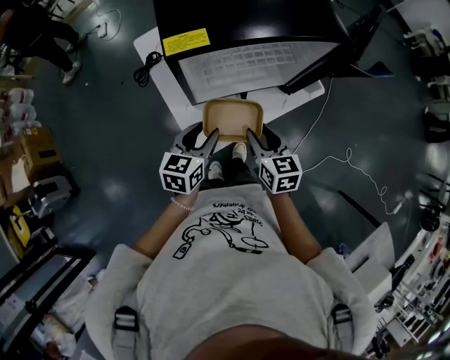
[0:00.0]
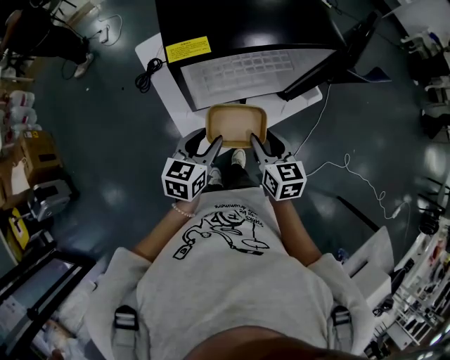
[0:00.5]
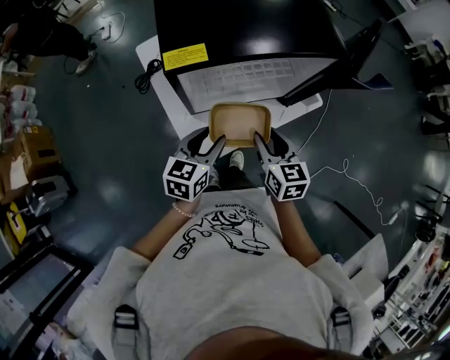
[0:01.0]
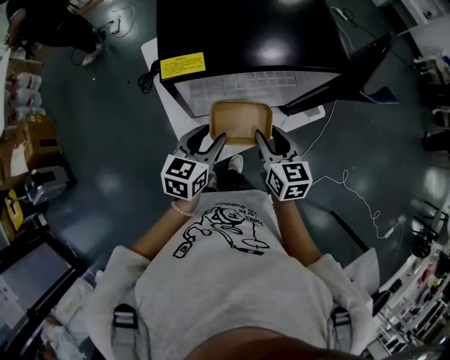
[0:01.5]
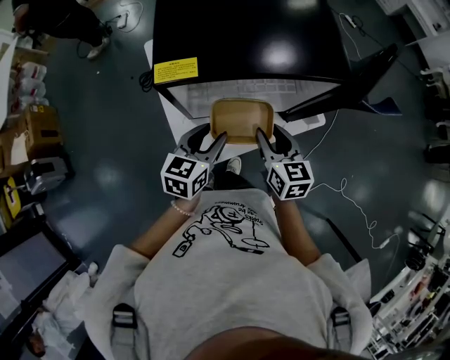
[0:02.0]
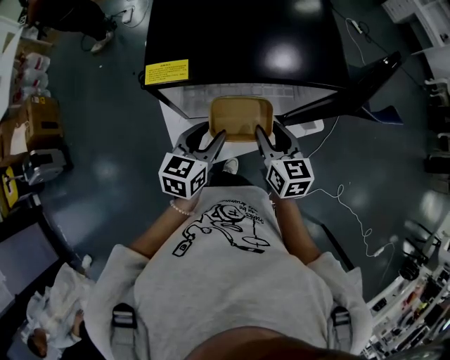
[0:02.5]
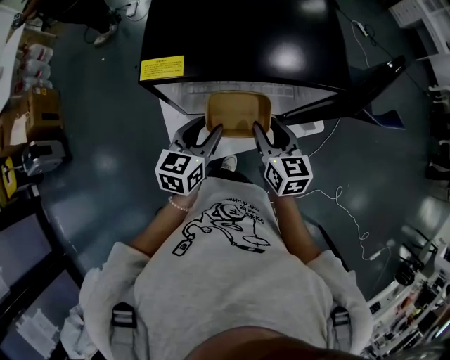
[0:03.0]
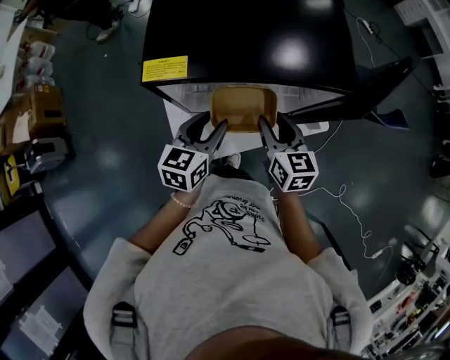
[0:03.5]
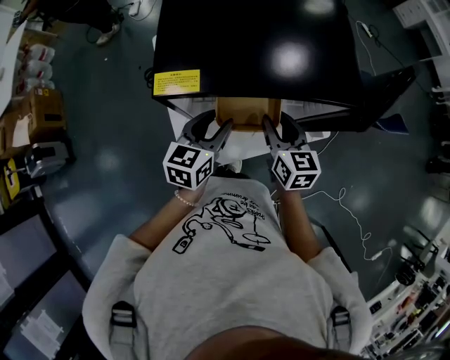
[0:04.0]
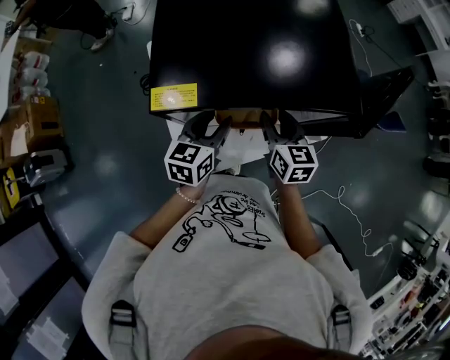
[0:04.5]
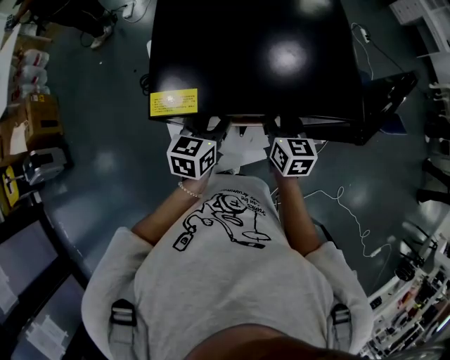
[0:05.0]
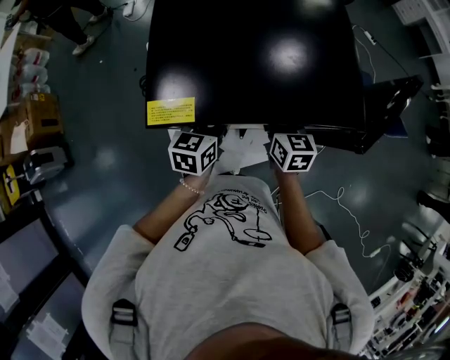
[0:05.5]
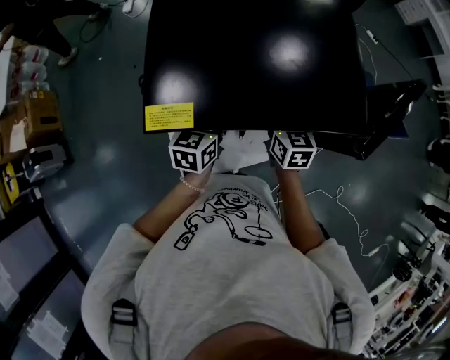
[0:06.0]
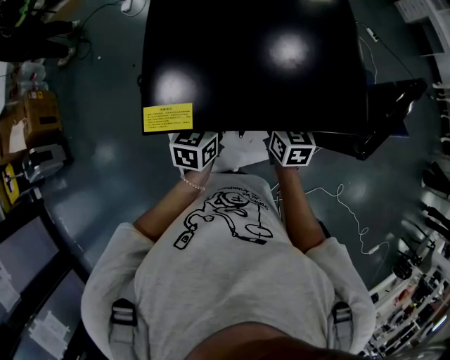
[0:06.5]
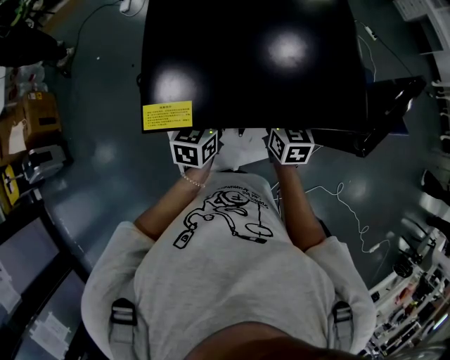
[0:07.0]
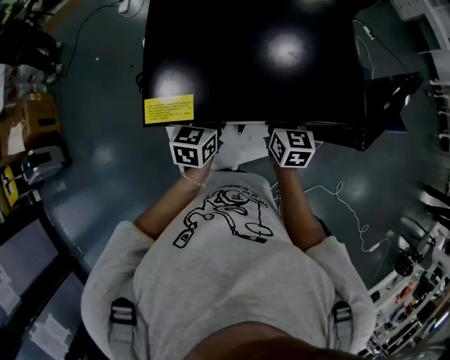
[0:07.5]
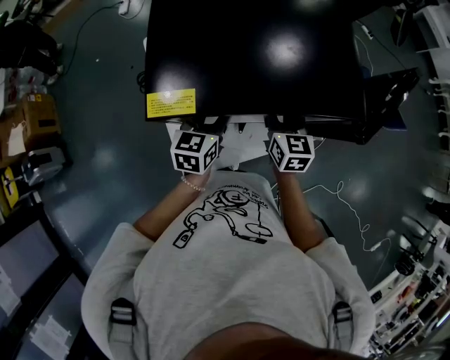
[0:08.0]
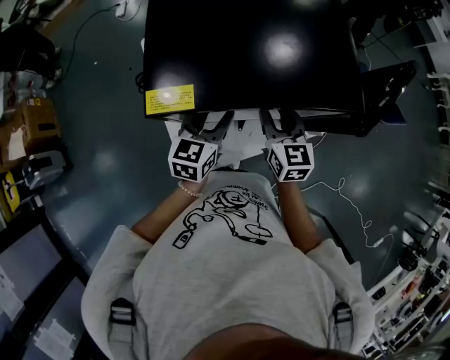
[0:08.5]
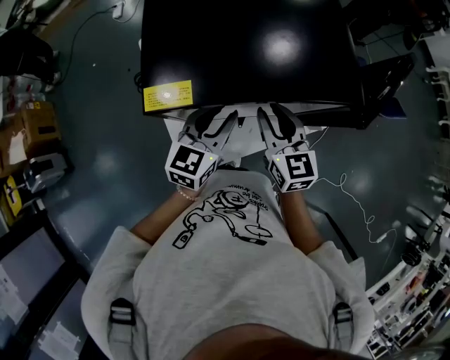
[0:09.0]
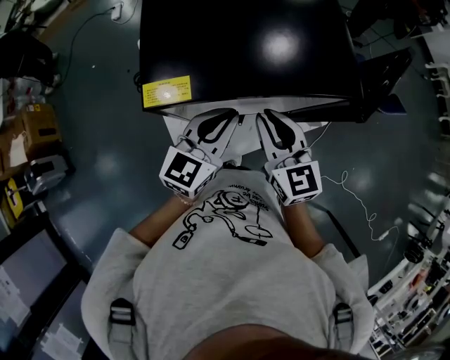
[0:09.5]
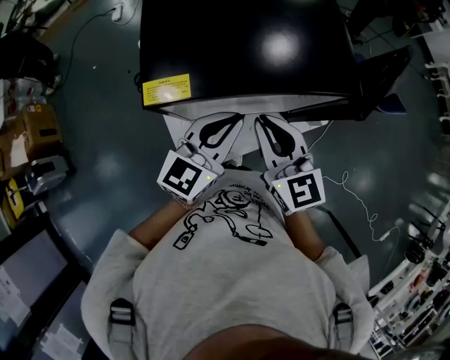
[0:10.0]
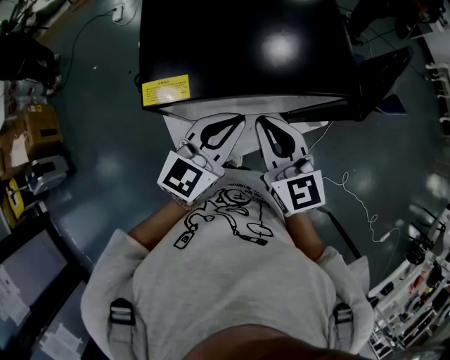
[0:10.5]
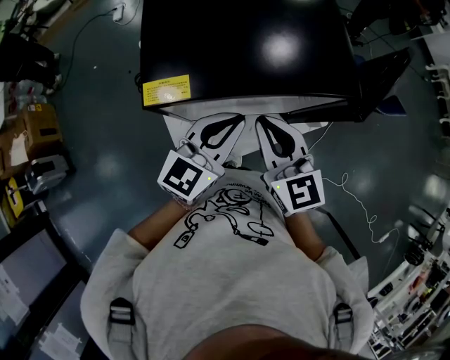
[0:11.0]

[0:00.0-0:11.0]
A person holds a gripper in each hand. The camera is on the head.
0:00.0 to 0:02.0: Both grippers move forward, some 10 cm.
0:02.0 to 0:03.5: There are only small adjustments of the grippers.
0:03.5 to 0:05.5: Both grippers move forward, roughly 10 cm.
0:05.5 to 0:07.5: There are only small adjustments of the grippers.
0:07.5 to 0:09.0: The right gripper is displaced backward and upward by roughly 10 cm. The left gripper heads upward and backward, covering roughly 10 cm.
0:09.0 to 0:11.0: The right gripper heads upward and backward, covering approximately 10 cm, and closes its fingers. The left gripper heads upward, covering about 5 cm, and closes its fingers.

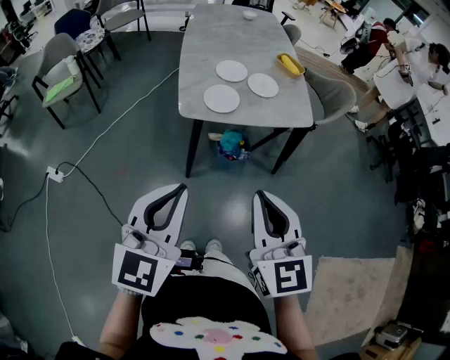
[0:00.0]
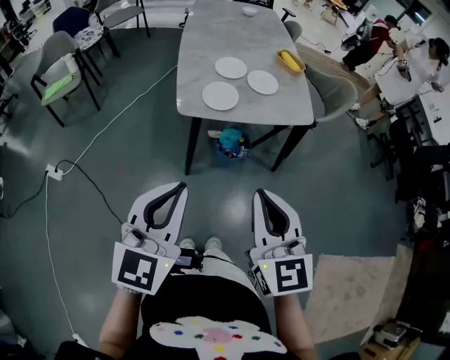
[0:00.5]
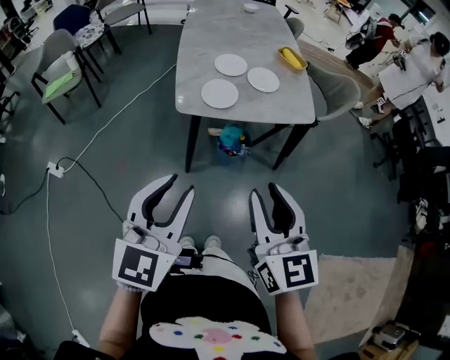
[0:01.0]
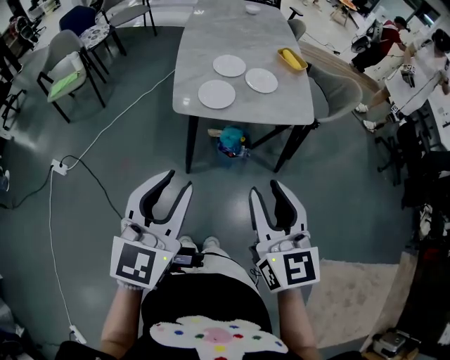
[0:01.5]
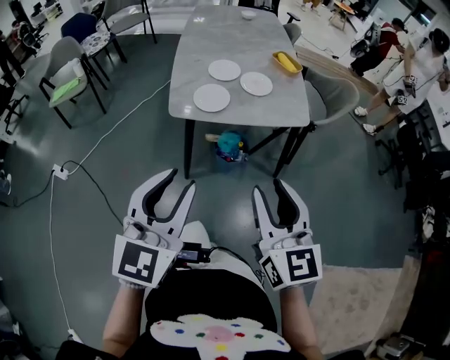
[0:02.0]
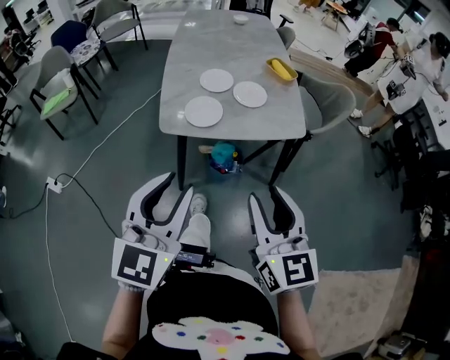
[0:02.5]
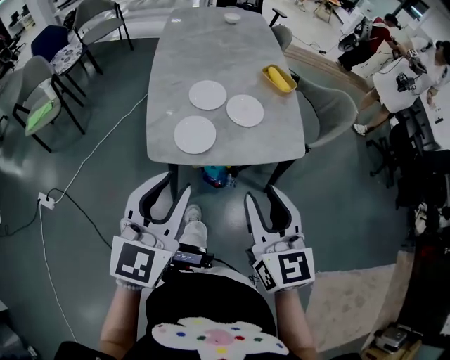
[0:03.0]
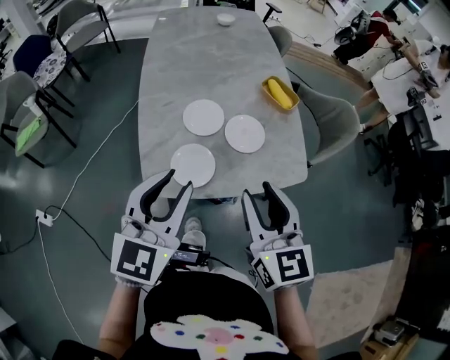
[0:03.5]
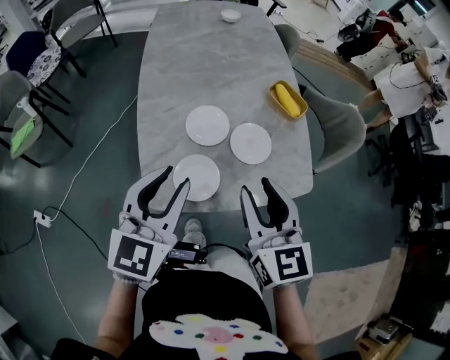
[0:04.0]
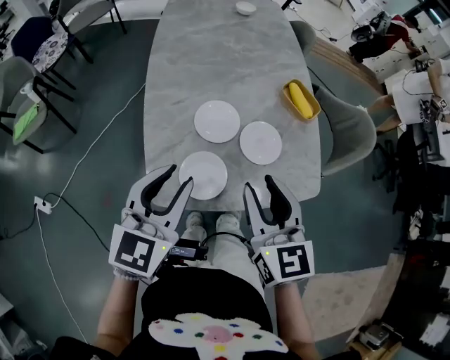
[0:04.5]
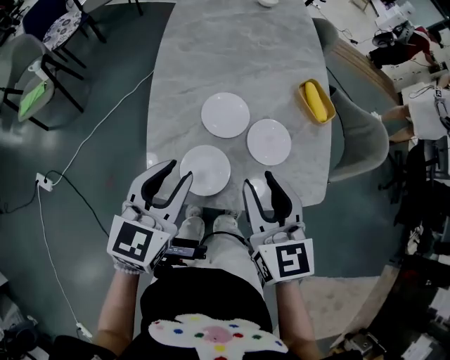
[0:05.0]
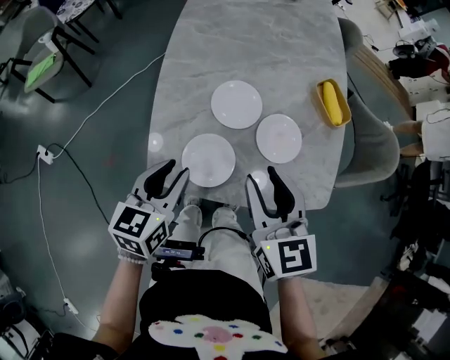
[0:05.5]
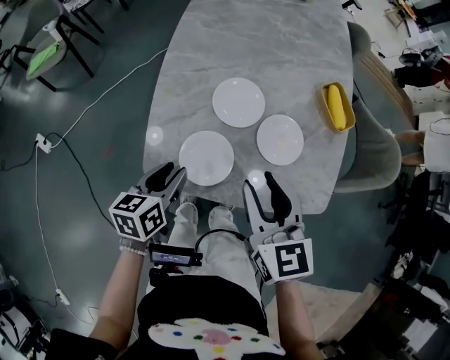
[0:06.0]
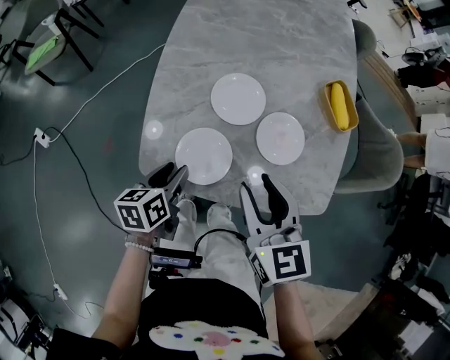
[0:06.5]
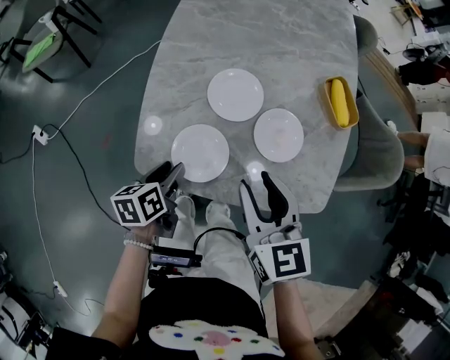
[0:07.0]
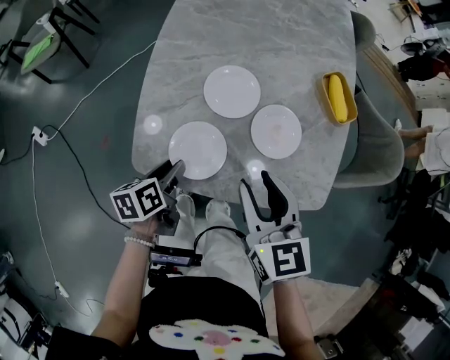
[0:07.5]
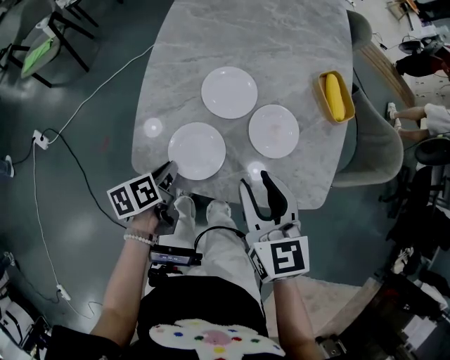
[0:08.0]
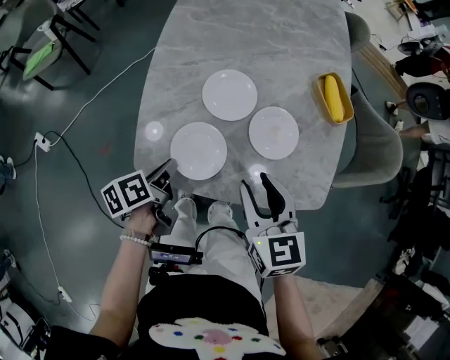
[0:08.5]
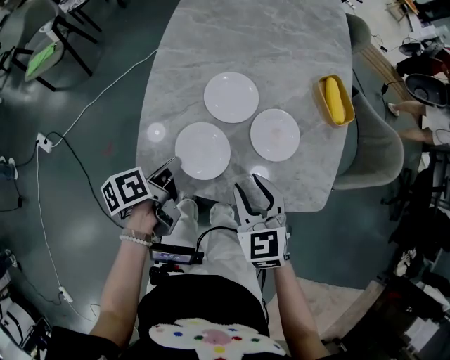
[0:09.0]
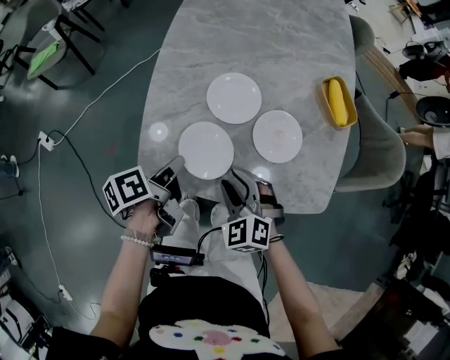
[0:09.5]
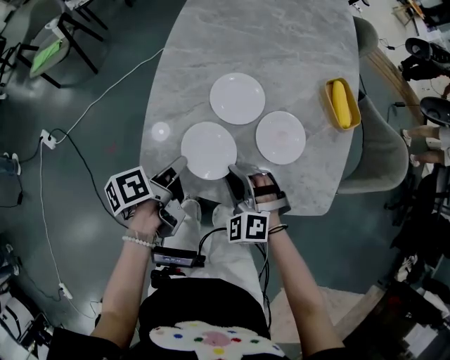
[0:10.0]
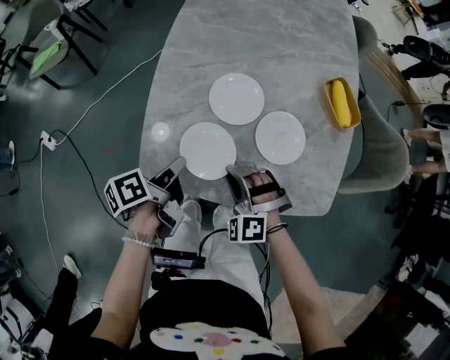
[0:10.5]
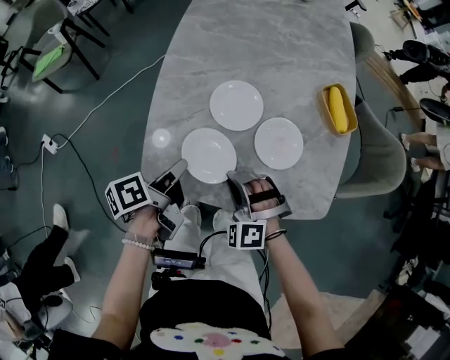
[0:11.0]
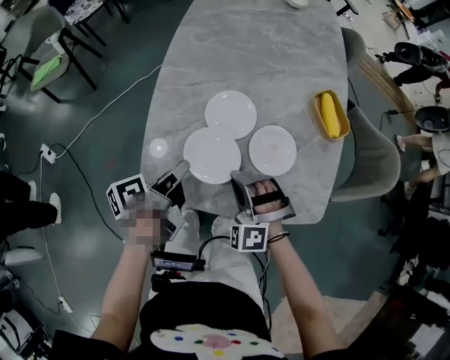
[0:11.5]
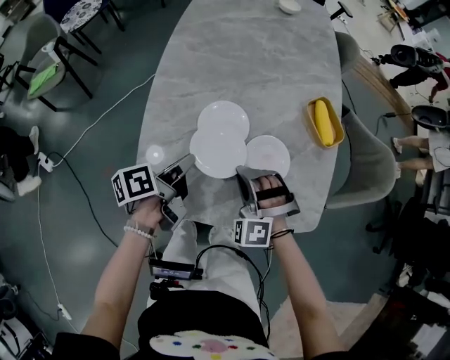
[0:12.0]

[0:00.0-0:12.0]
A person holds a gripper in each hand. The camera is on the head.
0:00.0 to 0:02.0: Both grippers move to the right, roughly 10 cm. The left gripper opens up. Meanwhile the right gripper opens.
0:02.0 to 0:04.0: Both grippers move forward, some 35 cm.
0:04.0 to 0:06.0: The right gripper is displaced downward by roughly 10 cm, and changes its angle by some 20 degrees. Meanwhile the left gripper goes about 20 cm downward, and rotates around the line of its fingers by approximately 40 degrees, counterclockwise from behind.
0:06.0 to 0:08.0: The left gripper travels downward by approximately 5 cm, swivels roughly 30 degrees, and closes up.
0:08.0 to 0:10.0: The right gripper moves downward, about 15 cm, and twists roughly 60 degrees counterclockwise, seen from behind. Meanwhile the left gripper travels upward by approximately 5 cm, and changes its angle by some 20 degrees.
0:10.0 to 0:12.0: The grippers both shift forward by some 10 cm. The right gripper rotates about 20 degrees.

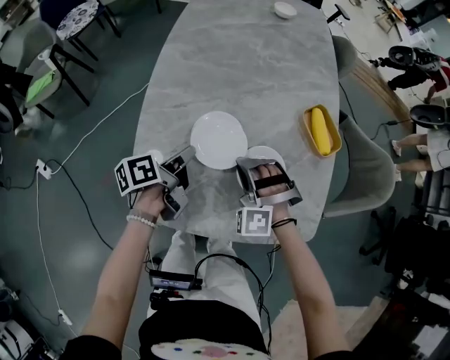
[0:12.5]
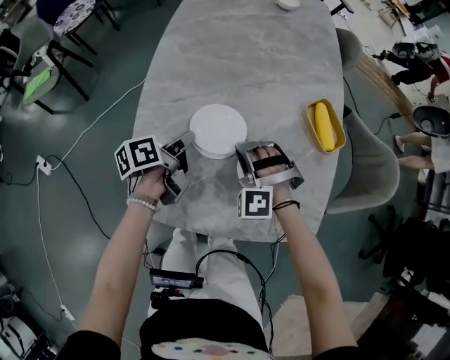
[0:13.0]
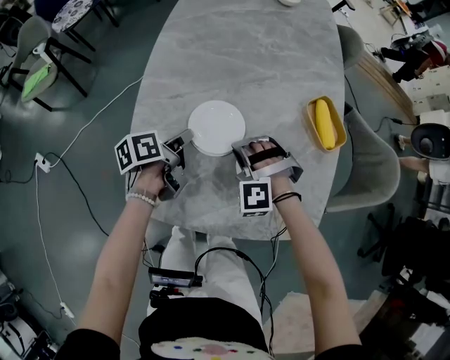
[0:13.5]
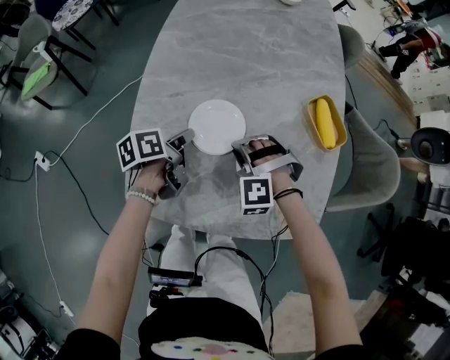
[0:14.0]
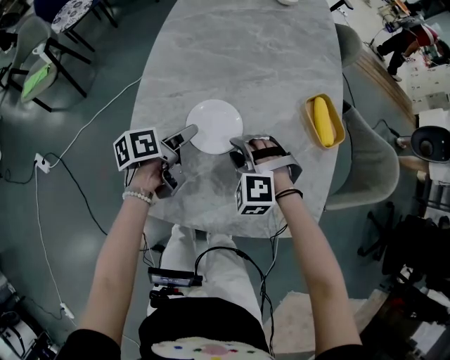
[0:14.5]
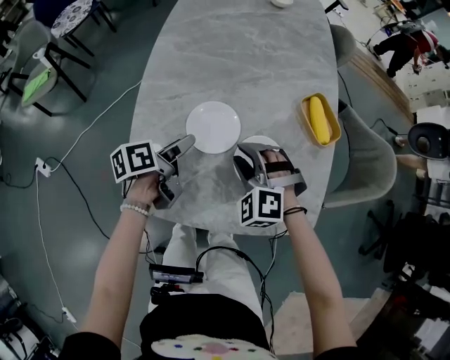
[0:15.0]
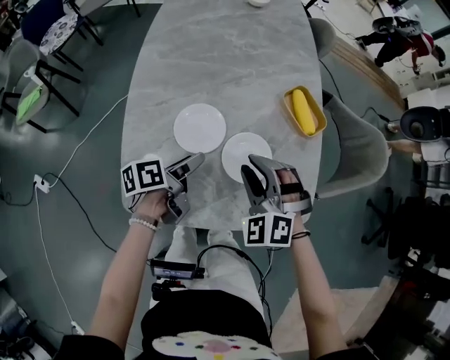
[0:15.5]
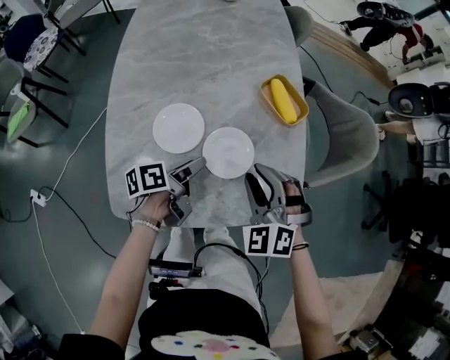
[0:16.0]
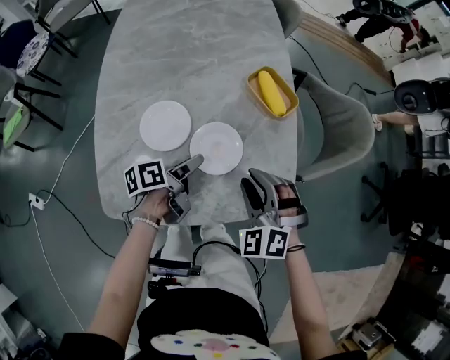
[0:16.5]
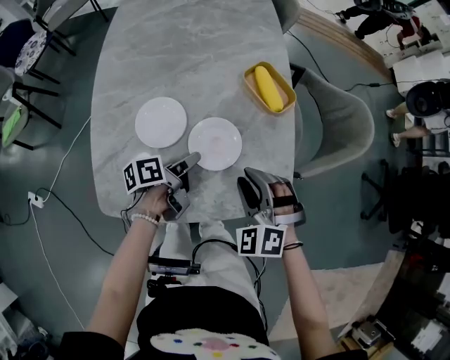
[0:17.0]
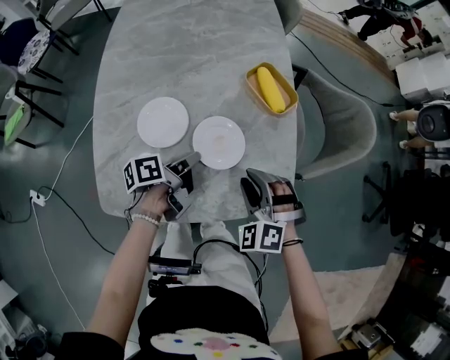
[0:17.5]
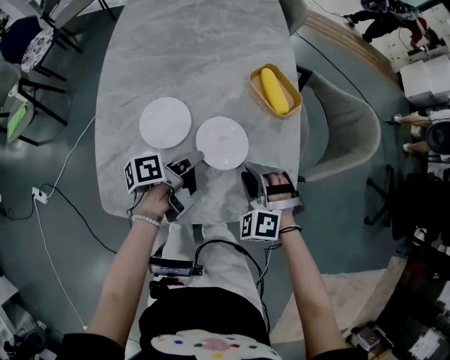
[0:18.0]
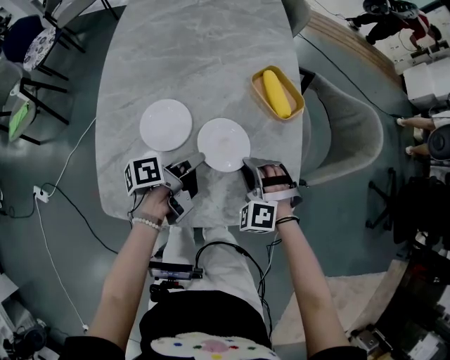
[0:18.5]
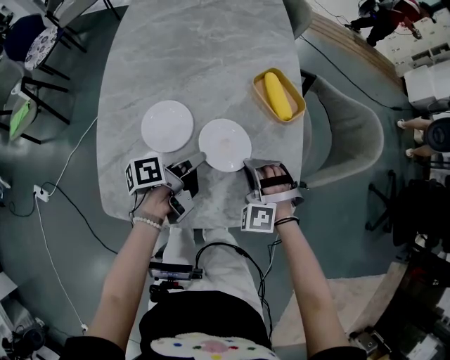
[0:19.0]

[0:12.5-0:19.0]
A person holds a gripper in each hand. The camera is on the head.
0:12.5 to 0:14.5: The left gripper opens up. The right gripper opens.
0:14.5 to 0:17.0: The right gripper moves to the right and upward, some 20 cm, and changes its angle by roughly 30 degrees, while the left gripper goes roughly 20 cm to the right, and closes up.
0:17.0 to 0:19.0: The right gripper shifts roughly 10 cm downward and forward, turns by about 20 degrees, and closes. The left gripper closes its fingers.
